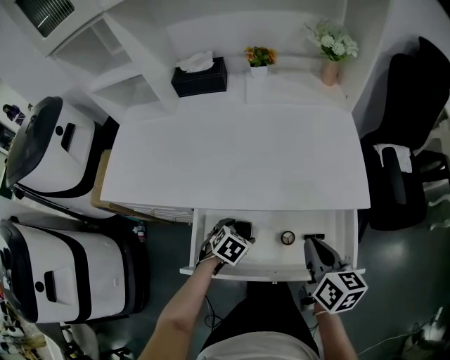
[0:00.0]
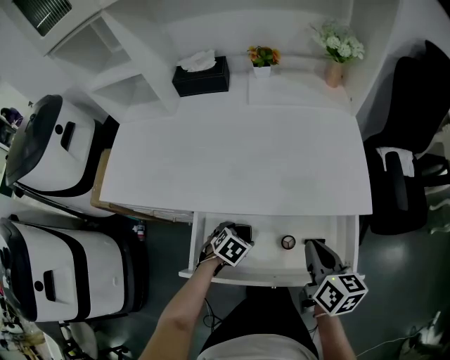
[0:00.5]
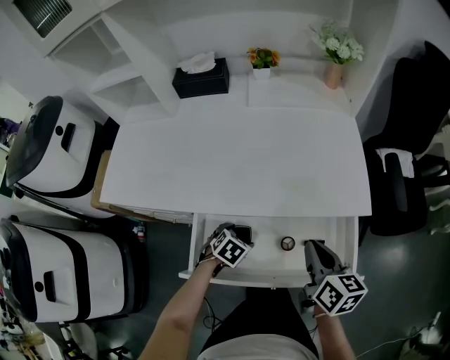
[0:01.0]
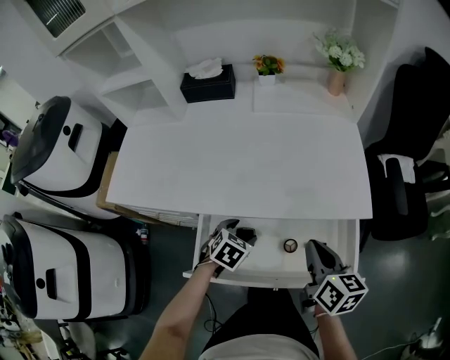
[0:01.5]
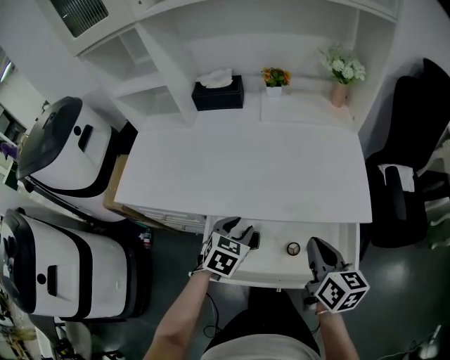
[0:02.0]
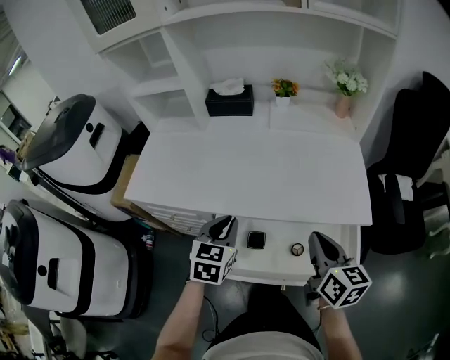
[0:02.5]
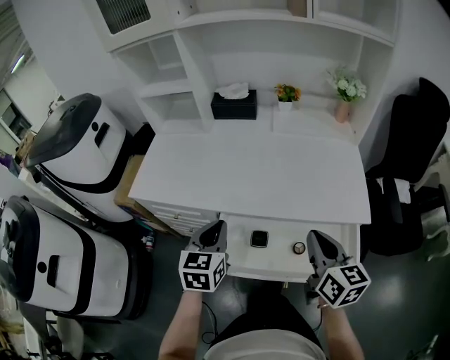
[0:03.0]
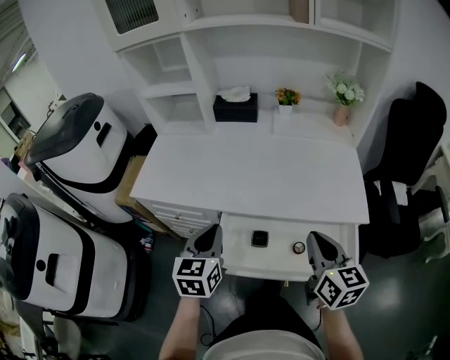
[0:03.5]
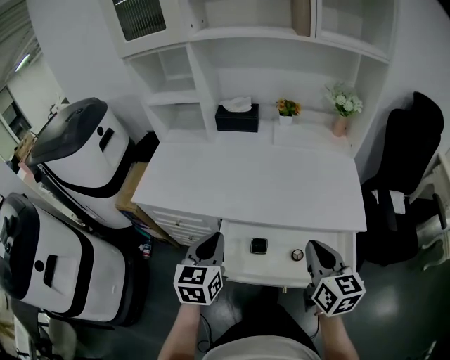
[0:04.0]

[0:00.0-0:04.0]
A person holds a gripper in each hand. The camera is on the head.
0:00.0 to 0:02.0: The left gripper goes some 15 cm upward, turns by about 20 degrees, and closes.
0:02.0 to 0:04.0: The left gripper goes roughly 20 cm upward, to the left and backward, changes its angle by approximately 40 degrees, and closes; the right gripper goes approximately 10 cm upward and to the left.

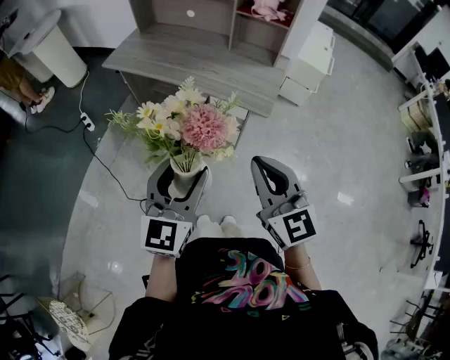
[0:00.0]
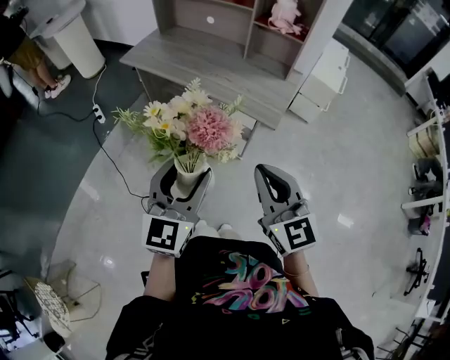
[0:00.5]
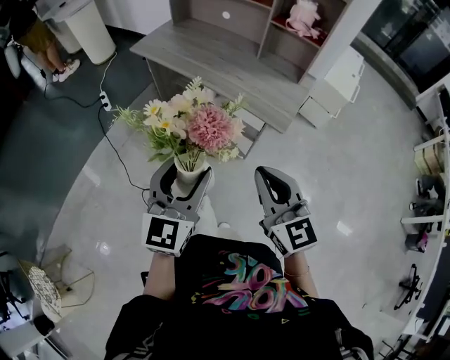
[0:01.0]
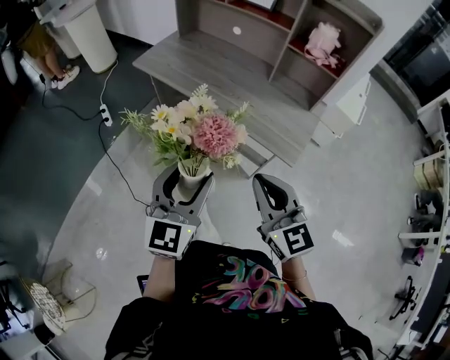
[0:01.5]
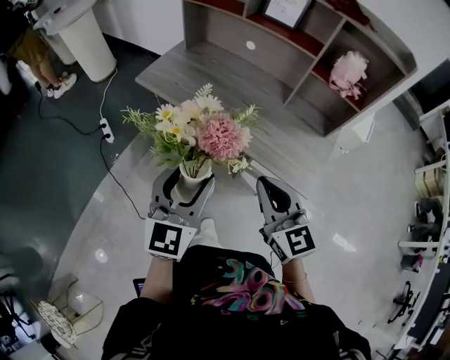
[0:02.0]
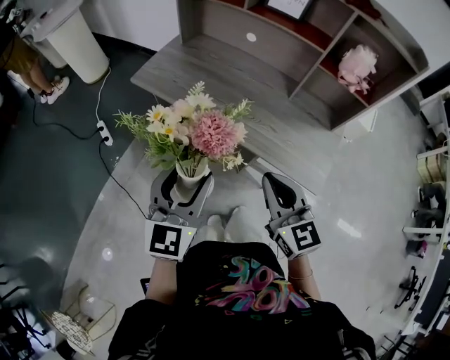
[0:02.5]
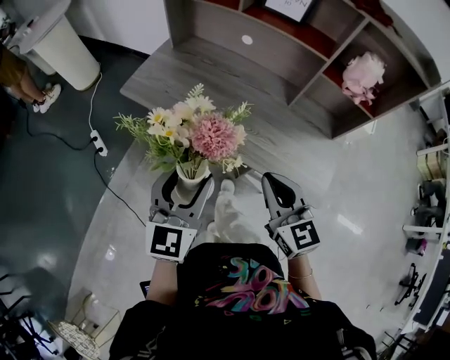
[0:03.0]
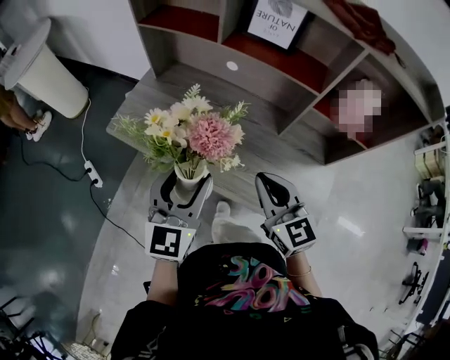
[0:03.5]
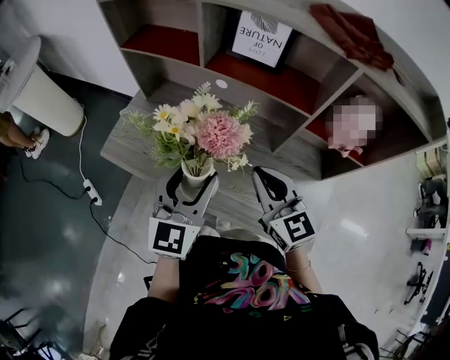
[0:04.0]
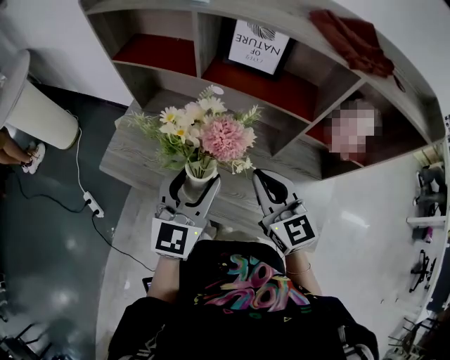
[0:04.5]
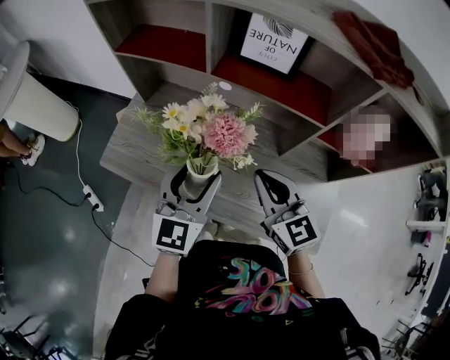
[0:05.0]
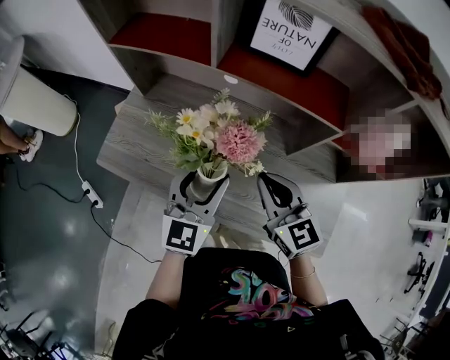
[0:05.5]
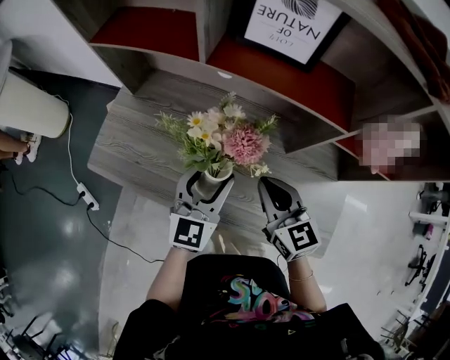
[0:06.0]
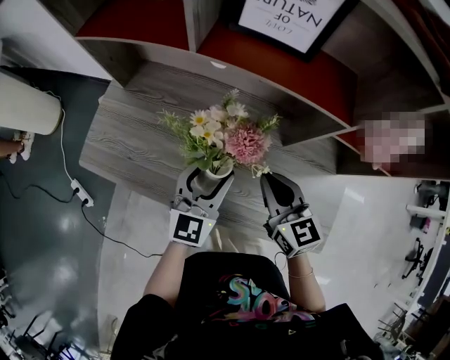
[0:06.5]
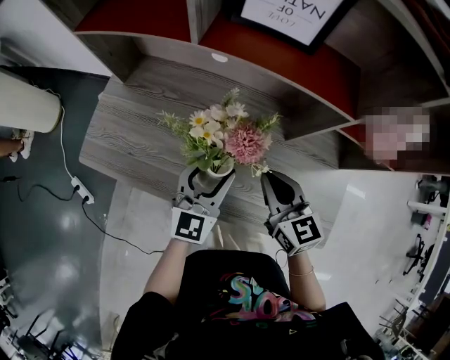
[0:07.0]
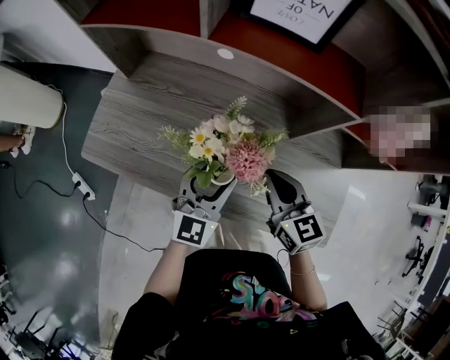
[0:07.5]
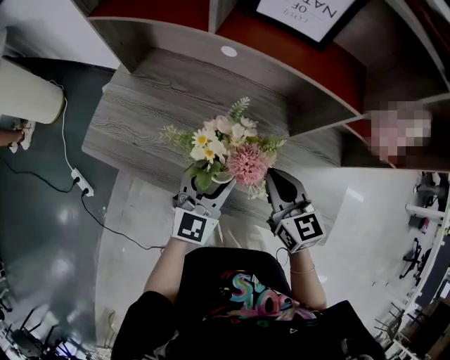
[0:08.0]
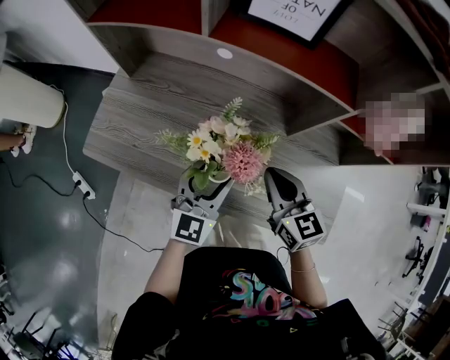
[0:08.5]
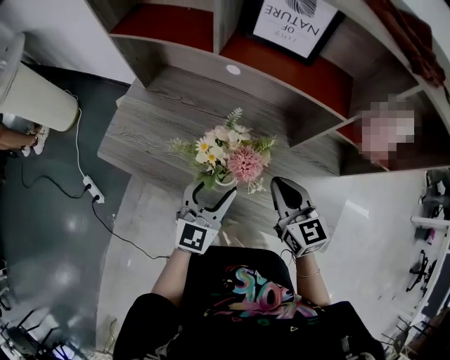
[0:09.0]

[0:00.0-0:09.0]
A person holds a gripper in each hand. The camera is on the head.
0:00.0 to 0:02.0: The right gripper heads downward, covering roughly 5 cm.
0:02.0 to 0:04.5: The grippers make only small movements.
0:04.5 to 0:07.0: The right gripper shifts some 15 cm downward; the left gripper travels downward and forward by approximately 20 cm.
0:07.0 to 0:09.0: The left gripper shifts approximately 5 cm backward.

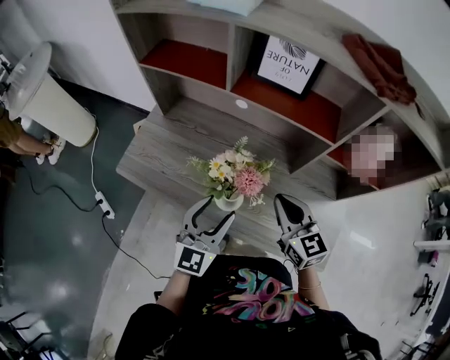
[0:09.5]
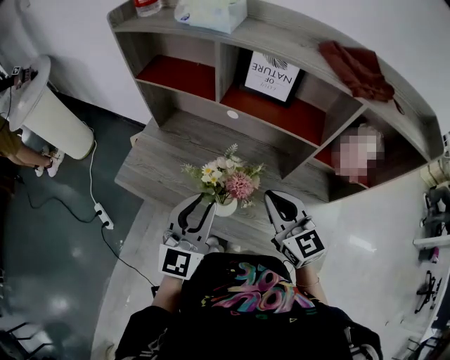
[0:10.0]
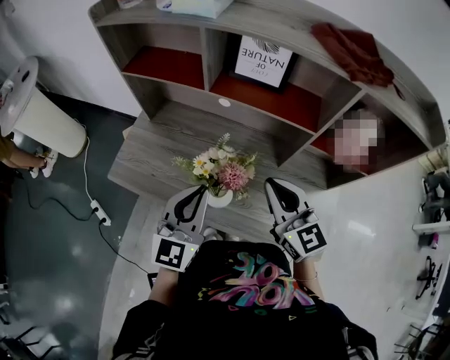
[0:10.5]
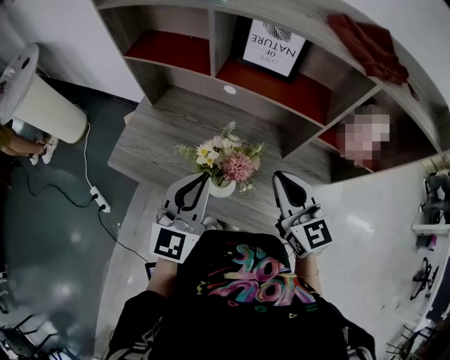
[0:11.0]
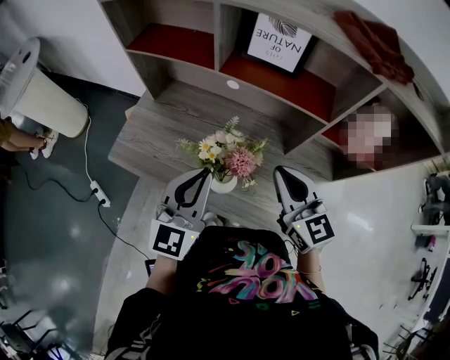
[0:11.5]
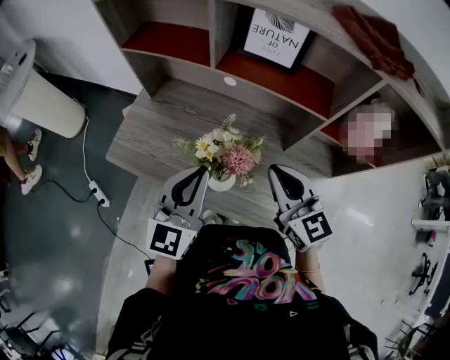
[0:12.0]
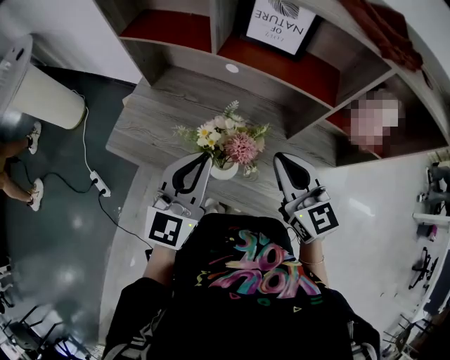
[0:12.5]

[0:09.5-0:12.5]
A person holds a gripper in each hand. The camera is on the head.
0:09.5 to 0:11.0: The two grippers go about 10 cm upward. The left gripper closes up.
0:11.0 to 0:12.5: There are only small adjustments of the grippers.

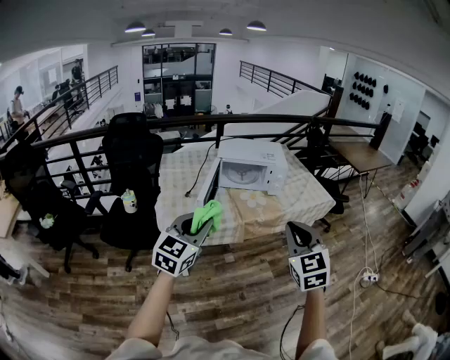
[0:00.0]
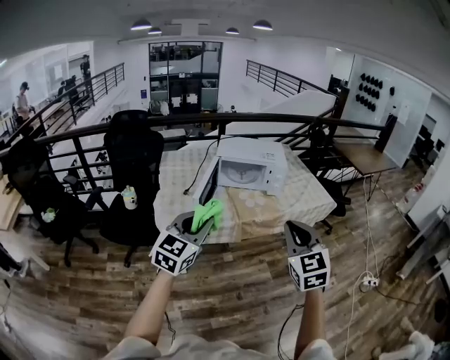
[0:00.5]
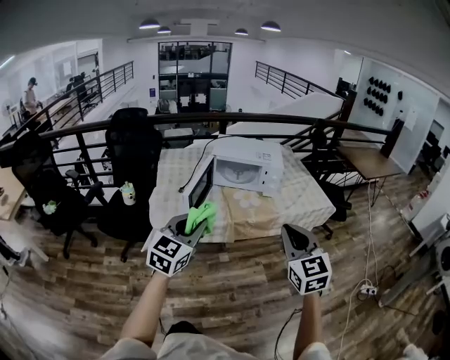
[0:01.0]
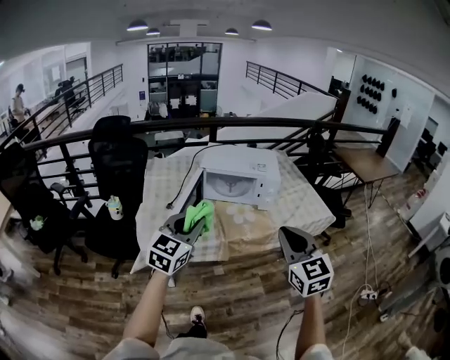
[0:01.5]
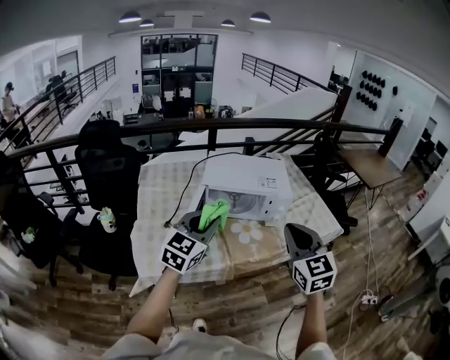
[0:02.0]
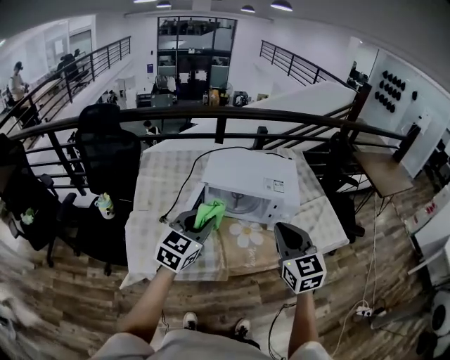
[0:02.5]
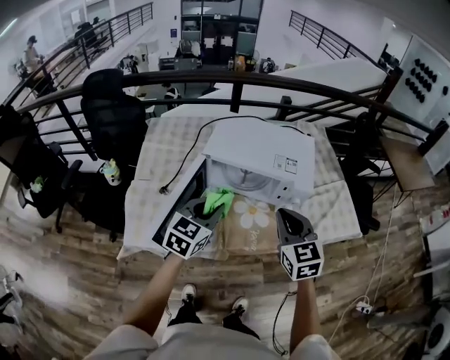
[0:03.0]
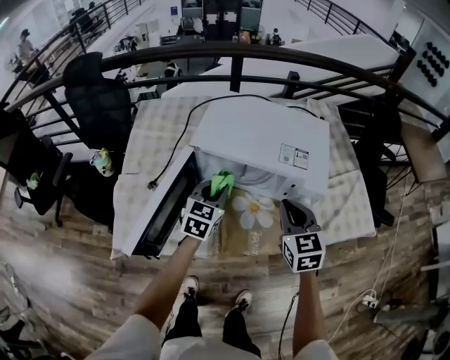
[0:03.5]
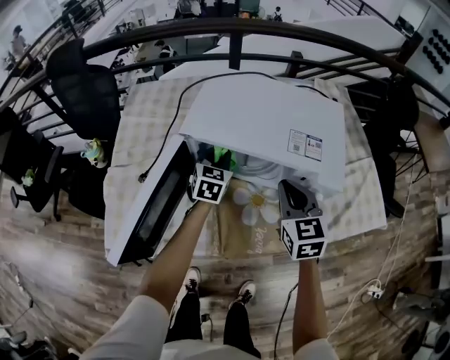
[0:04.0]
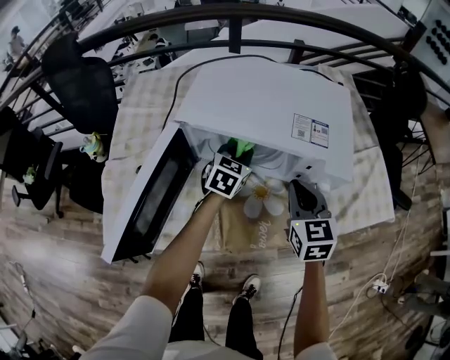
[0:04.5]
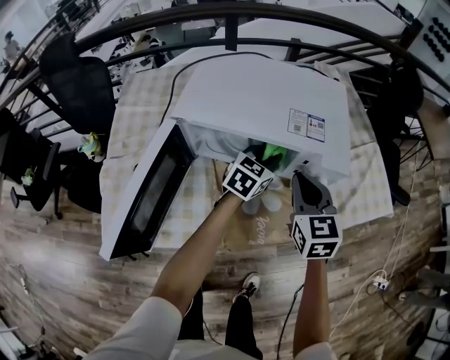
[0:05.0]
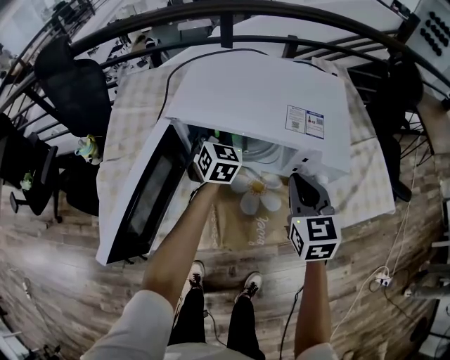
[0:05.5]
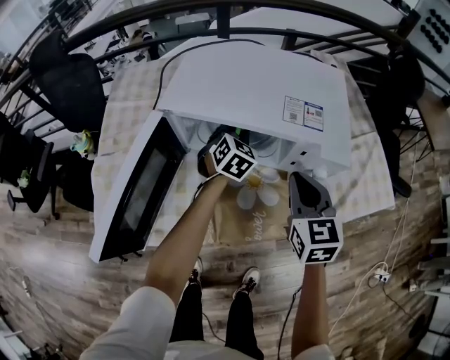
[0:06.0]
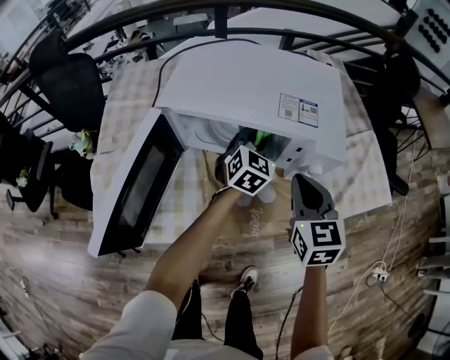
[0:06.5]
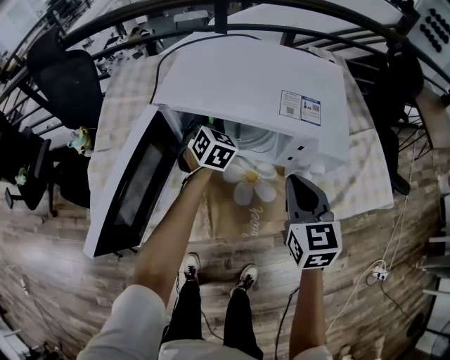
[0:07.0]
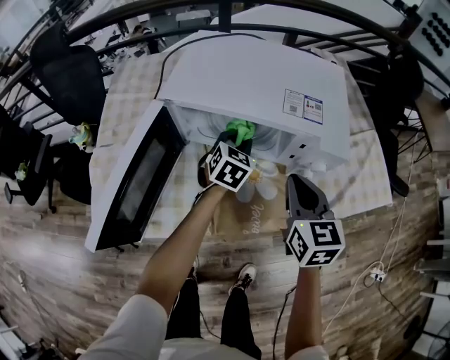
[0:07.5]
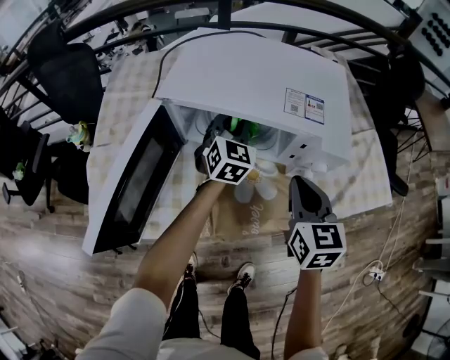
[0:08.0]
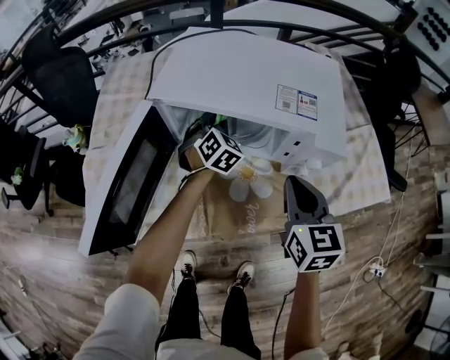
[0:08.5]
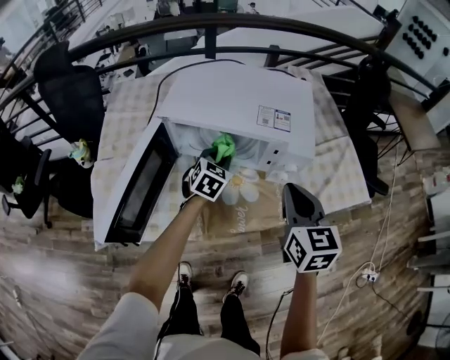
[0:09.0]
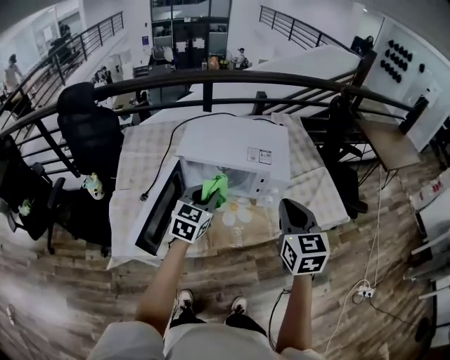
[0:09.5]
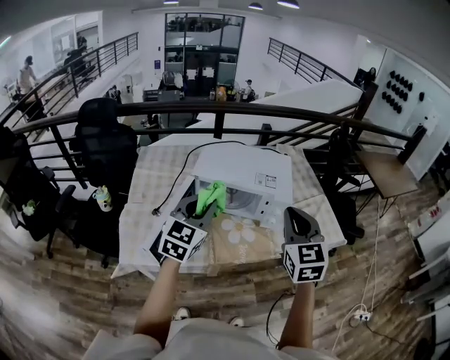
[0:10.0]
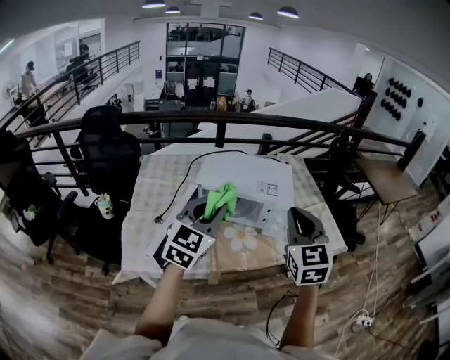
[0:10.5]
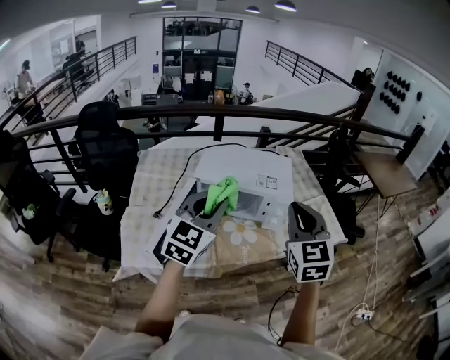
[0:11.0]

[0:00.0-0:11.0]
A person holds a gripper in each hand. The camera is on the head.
0:00.0 to 0:02.0: The two grippers go roughly 30 cm forward.
0:02.0 to 0:03.5: The left gripper shifts approximately 35 cm downward and forward, and swivels about 30 degrees, while the right gripper goes roughly 35 cm forward and downward.
0:03.5 to 0:05.5: The right gripper goes some 5 cm downward. Meanwhile the left gripper moves forward and downward, some 15 cm, moves approximately 15 cm to the right and comes back, and changes its angle by about 20 degrees.
0:05.5 to 0:07.5: The left gripper goes left and right, approximately 15 cm each way, reversing 2 times, and rotates approximately 20 degrees.
0:07.5 to 0:09.0: The right gripper heads upward and backward, covering roughly 10 cm.
0:09.0 to 0:11.0: The left gripper heads upward and backward, covering roughly 40 cm, and tips its fingers upward by about 30 degrees, while the right gripper heads upward and backward, covering some 25 cm, and turns by some 30 degrees.
